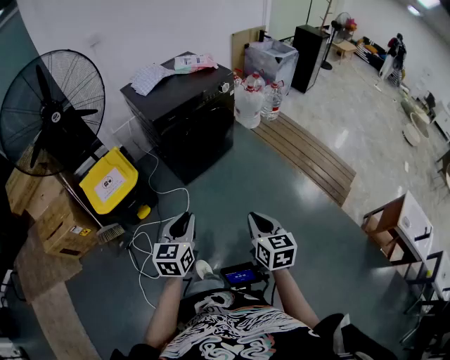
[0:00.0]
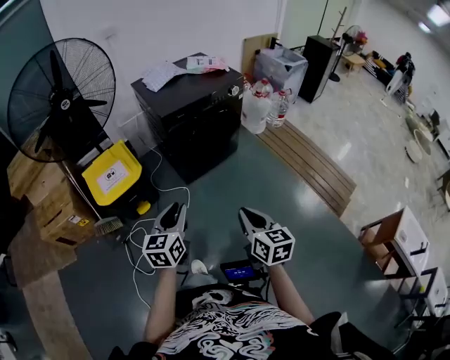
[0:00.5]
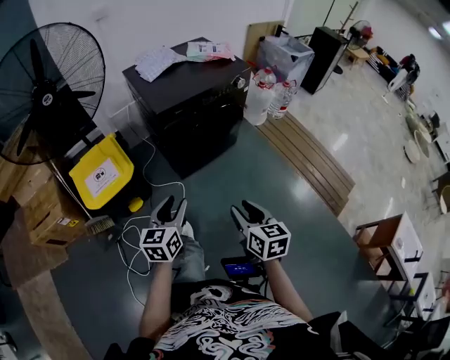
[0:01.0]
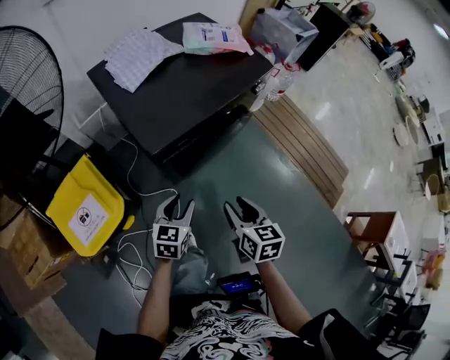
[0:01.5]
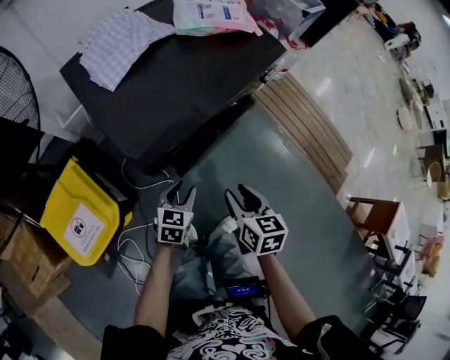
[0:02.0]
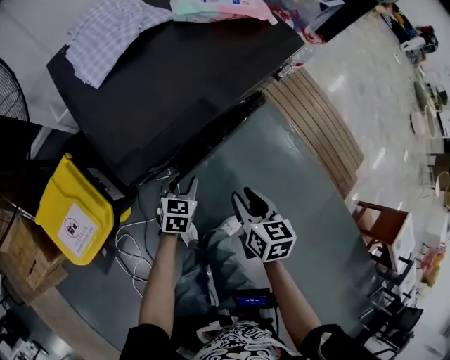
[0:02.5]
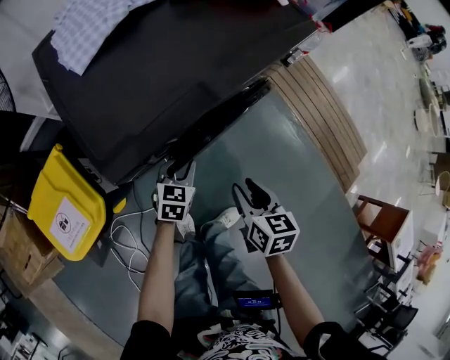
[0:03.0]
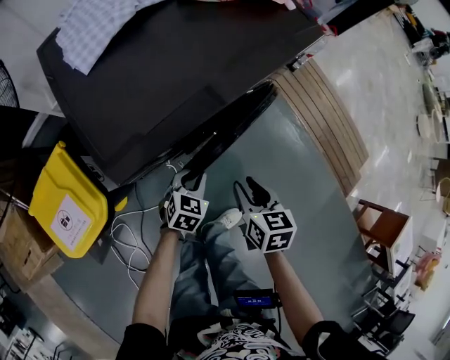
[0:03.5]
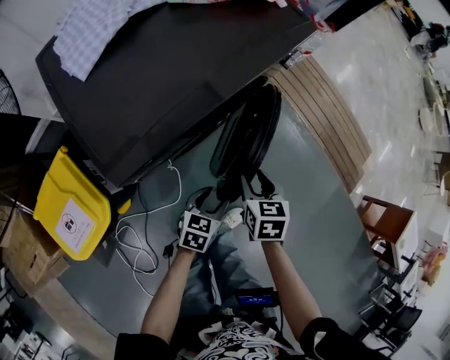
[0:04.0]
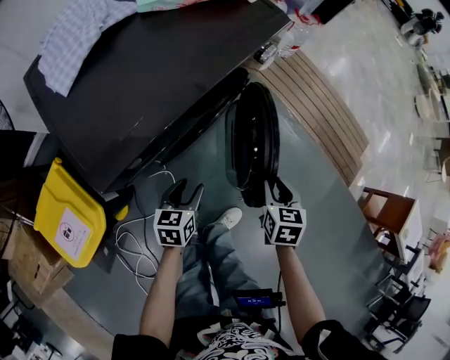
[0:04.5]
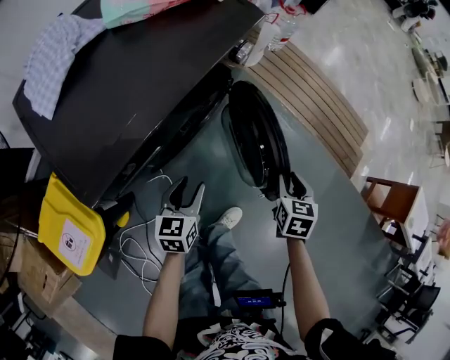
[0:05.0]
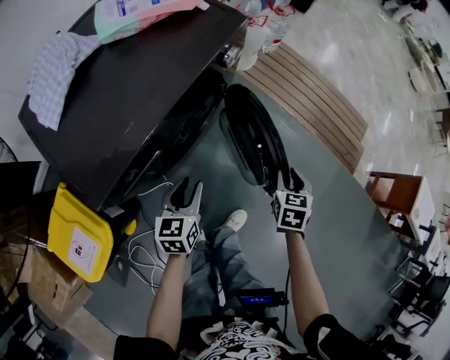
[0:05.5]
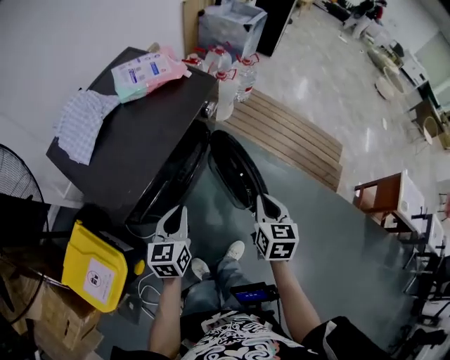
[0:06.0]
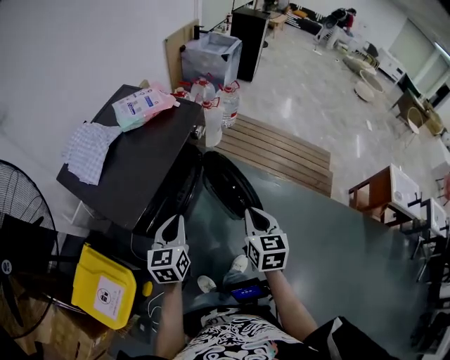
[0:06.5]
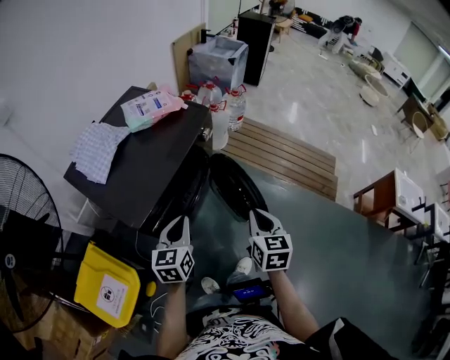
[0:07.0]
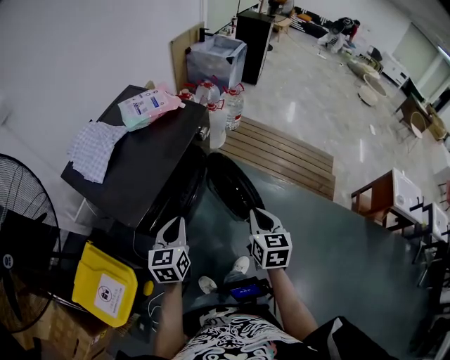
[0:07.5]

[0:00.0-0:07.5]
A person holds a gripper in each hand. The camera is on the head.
0:00.0 to 0:02.0: Both grippers are carried forward, some 50 cm. The right gripper opens; the left gripper is displaced downward by roughly 25 cm, changes its angle by about 20 degrees, and opens up.
0:02.0 to 0:04.0: The right gripper goes some 15 cm downward, forward and to the right. Meanwhile the left gripper goes approximately 15 cm to the right and downward.
0:04.0 to 0:05.5: The left gripper travels upward and forward by roughly 10 cm, while the right gripper heads to the right, covering some 20 cm, and turns by approximately 20 degrees.
0:05.5 to 0:07.5: The right gripper shifts roughly 25 cm upward and backward, changes its angle by some 20 degrees, and closes. The left gripper travels upward by some 20 cm, and closes up.

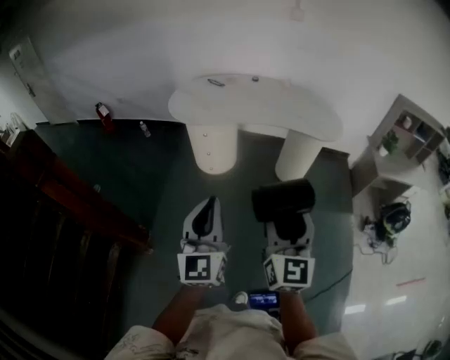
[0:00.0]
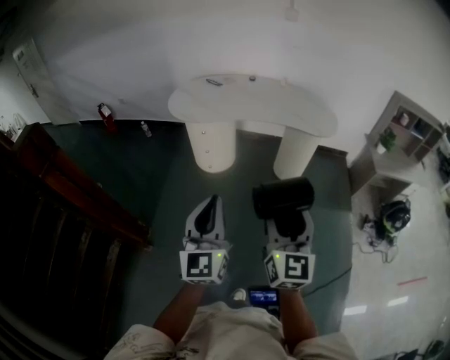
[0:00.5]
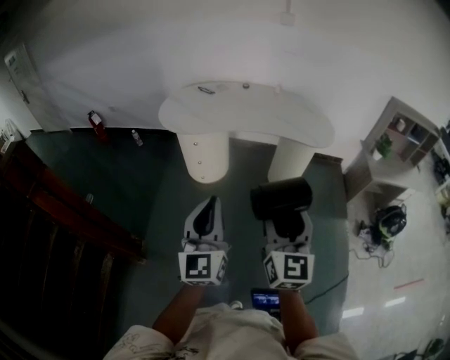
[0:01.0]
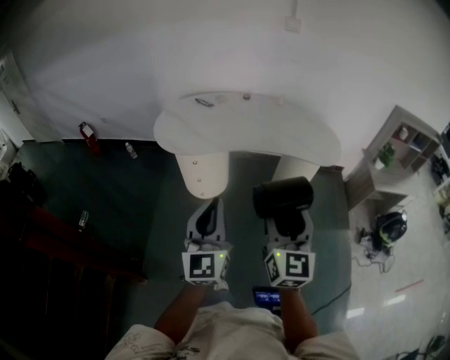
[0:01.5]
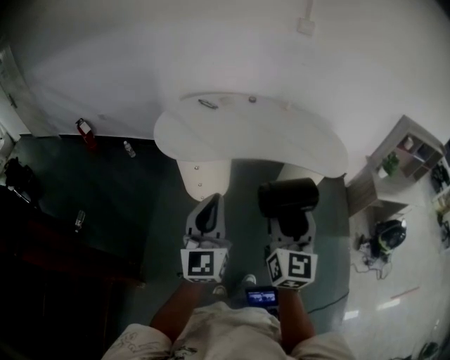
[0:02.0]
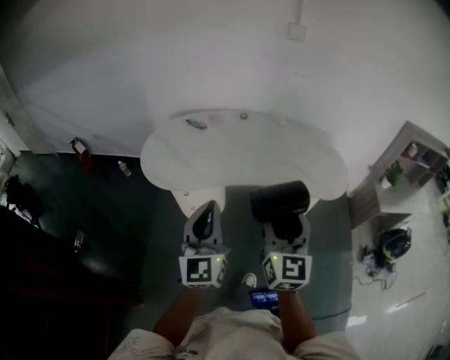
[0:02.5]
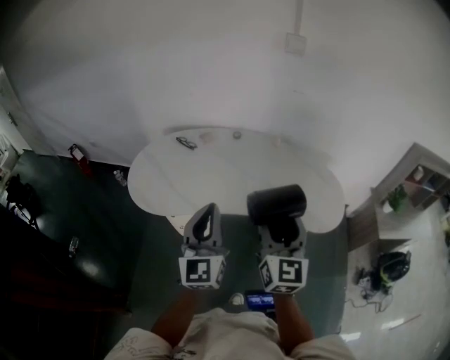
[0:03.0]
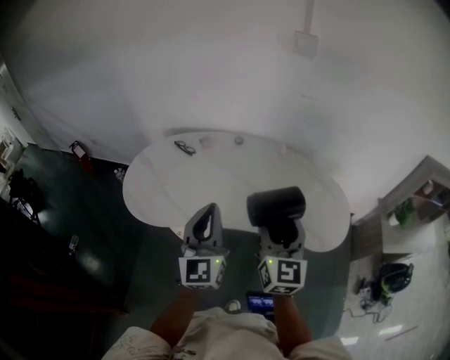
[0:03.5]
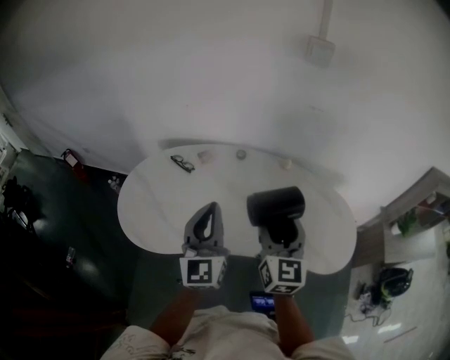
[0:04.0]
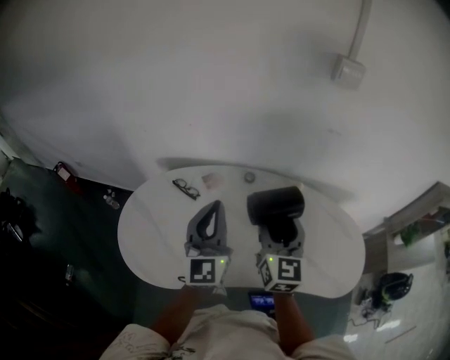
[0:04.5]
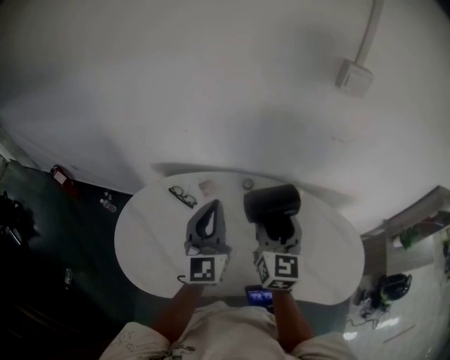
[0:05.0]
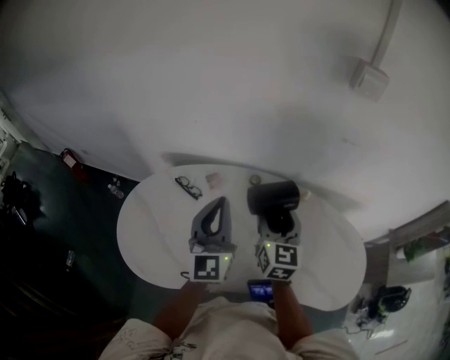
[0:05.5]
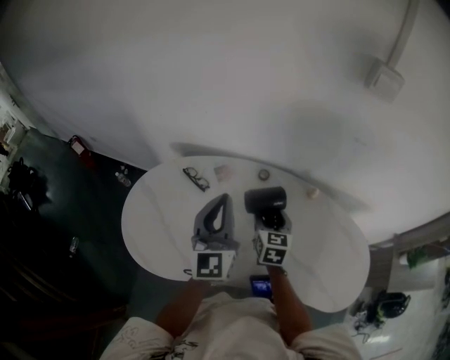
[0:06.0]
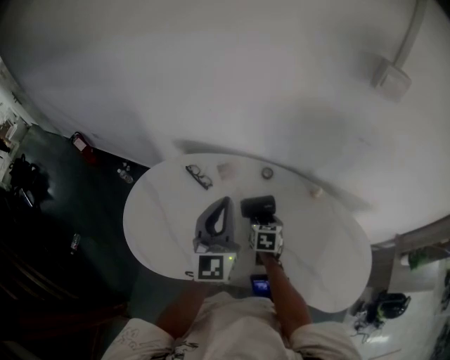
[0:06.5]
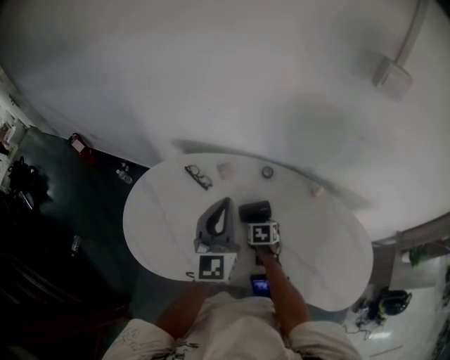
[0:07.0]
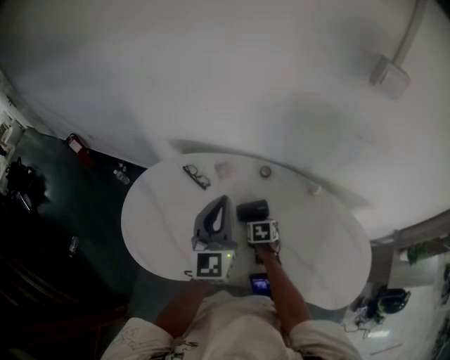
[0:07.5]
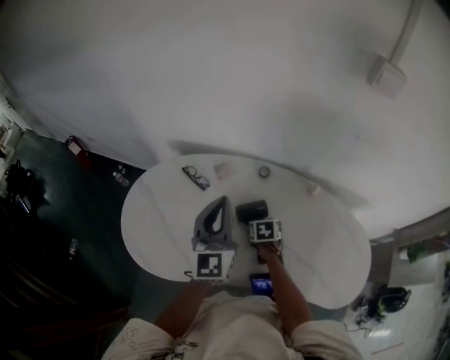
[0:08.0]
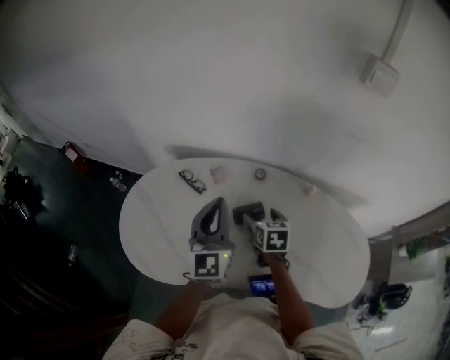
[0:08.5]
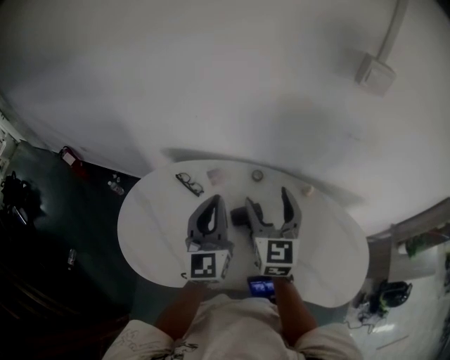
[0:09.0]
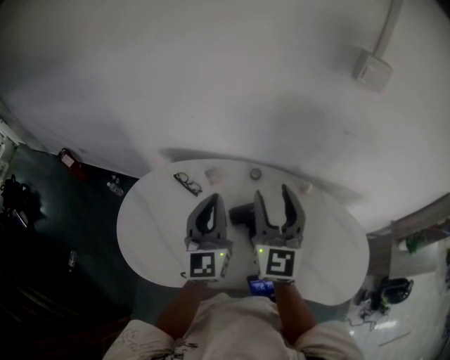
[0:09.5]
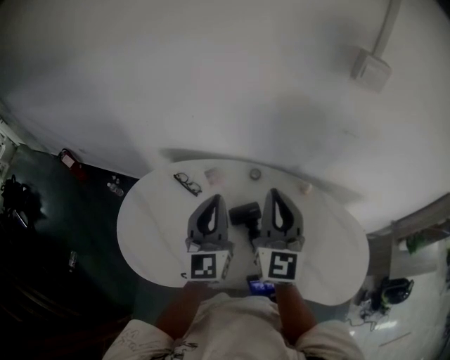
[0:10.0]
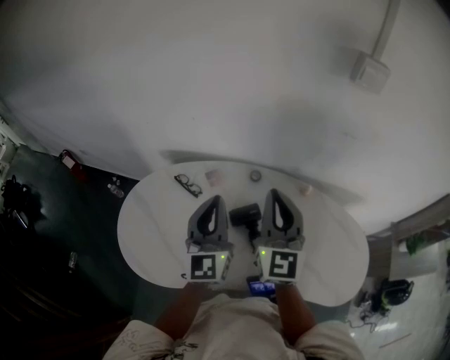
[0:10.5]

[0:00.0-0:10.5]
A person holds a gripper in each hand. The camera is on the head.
0:00.0 to 0:02.0: The grippers both shift forward by approximately 25 cm.
0:02.0 to 0:04.0: Both grippers are carried forward, roughly 50 cm.
0:04.0 to 0:06.5: The right gripper moves downward and forward, approximately 35 cm, and tilts its fingers approximately 50 degrees downward; the left gripper travels forward by approximately 20 cm.
0:06.5 to 0:08.5: The right gripper moves upward, about 5 cm.
0:08.5 to 0:10.5: The right gripper moves upward, approximately 25 cm, tips its fingers upward by roughly 50 degrees, and closes.

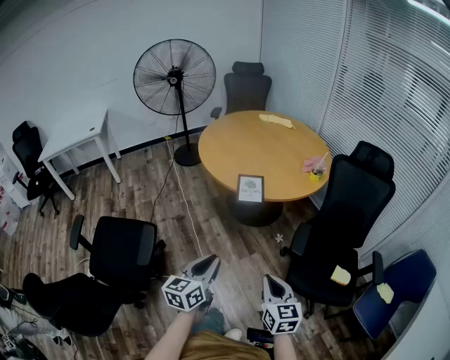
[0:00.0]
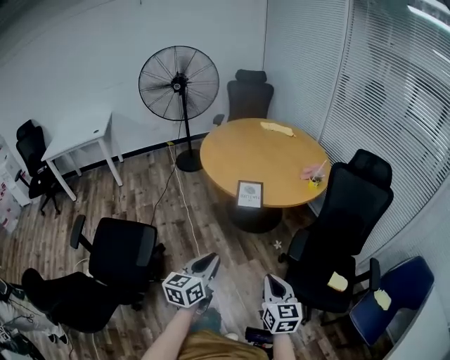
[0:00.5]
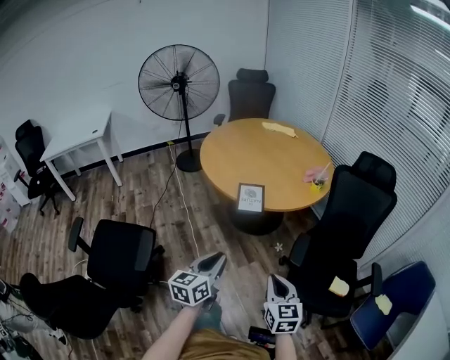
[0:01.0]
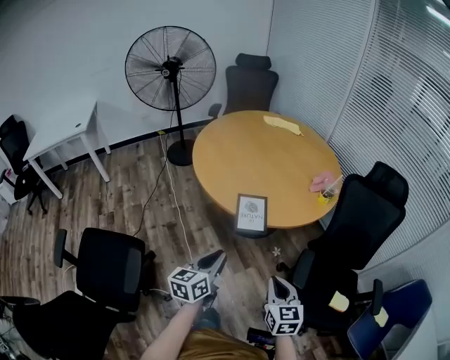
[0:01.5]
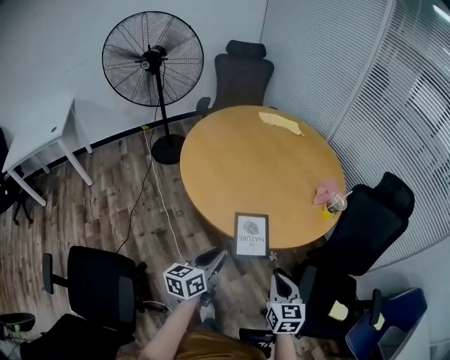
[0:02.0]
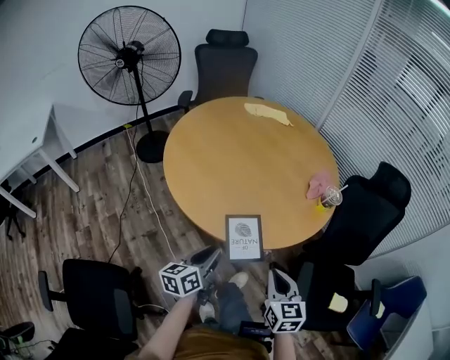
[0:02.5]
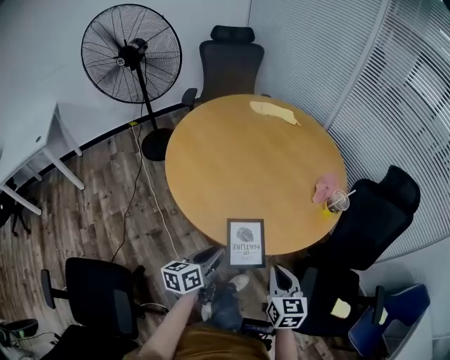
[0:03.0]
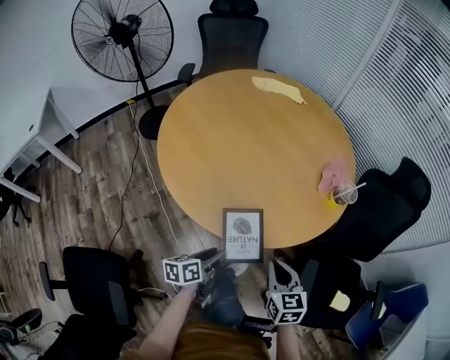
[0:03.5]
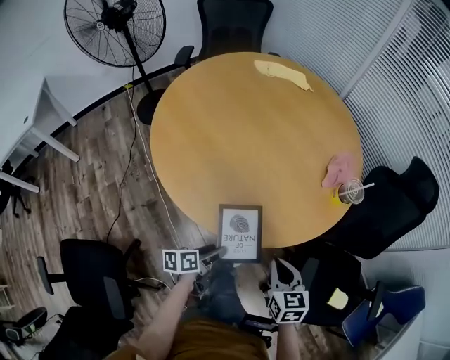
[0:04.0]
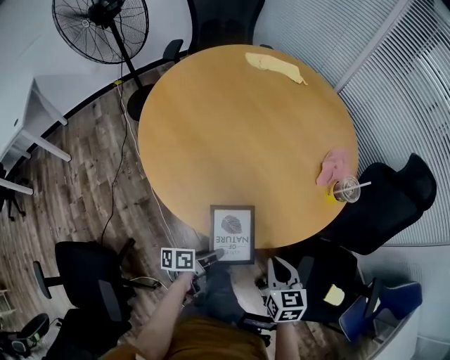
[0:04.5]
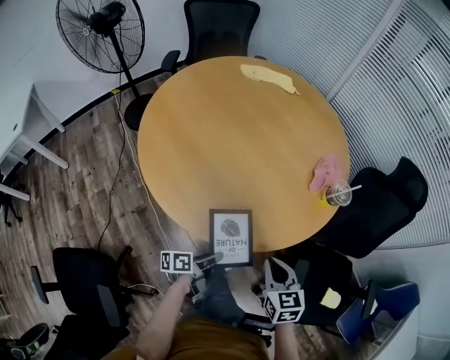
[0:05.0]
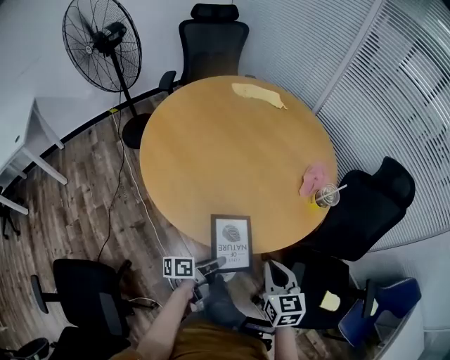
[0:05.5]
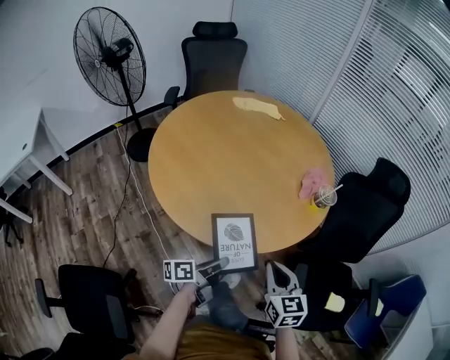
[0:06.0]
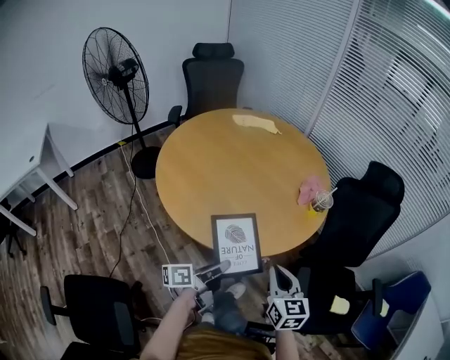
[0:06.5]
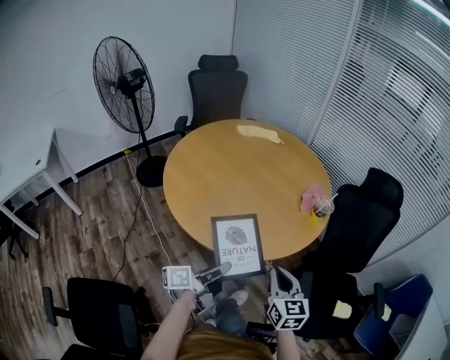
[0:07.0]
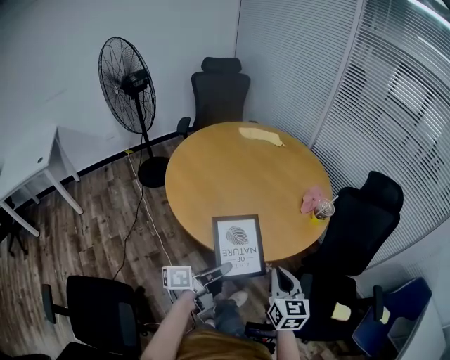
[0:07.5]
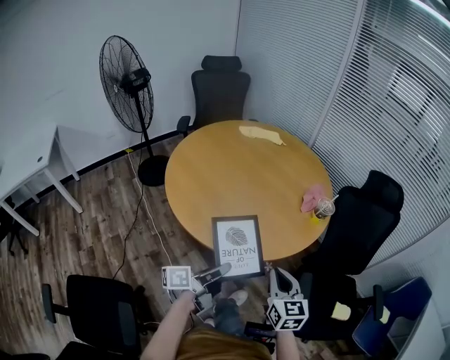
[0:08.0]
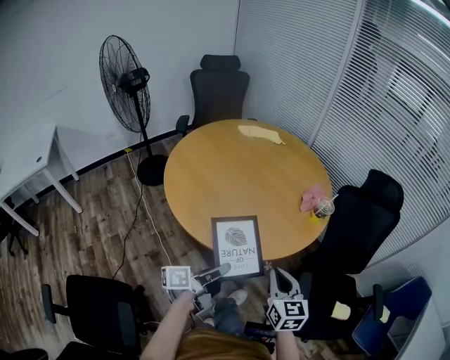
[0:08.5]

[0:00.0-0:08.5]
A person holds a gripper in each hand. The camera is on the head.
0:00.0 to 0:02.0: The grippers both shift forward by about 35 cm.
0:02.0 to 0:04.0: The left gripper travels downward and forward by some 20 cm, changes its angle by about 40 degrees, and opens up. The right gripper moves forward and downward, about 15 cm.
0:04.0 to 0:06.5: The left gripper is displaced upward by some 20 cm, turns by roughly 30 degrees, and closes; the right gripper heads upward and backward, covering approximately 15 cm.
0:06.5 to 0:08.5: The grippers move only a little.
